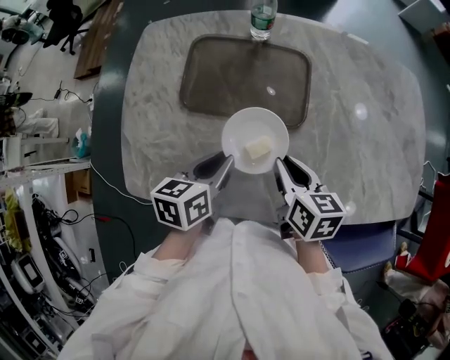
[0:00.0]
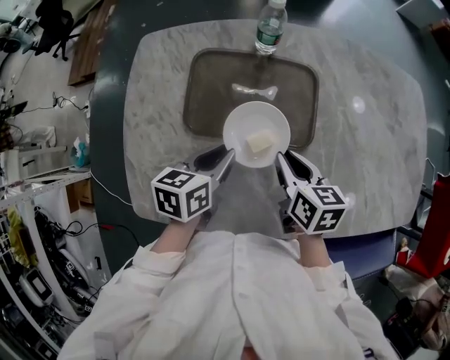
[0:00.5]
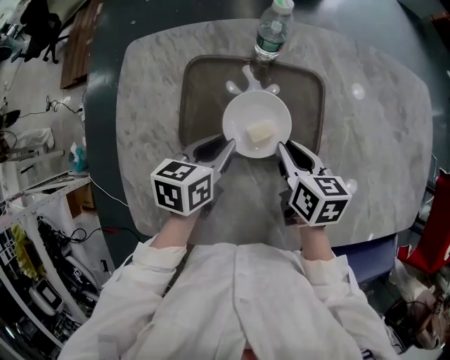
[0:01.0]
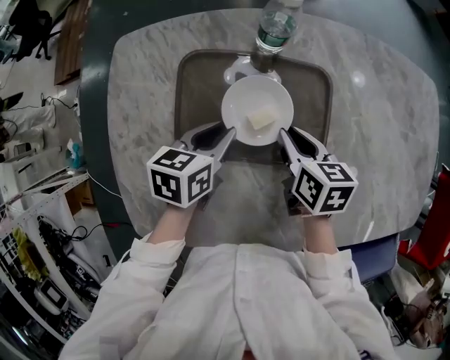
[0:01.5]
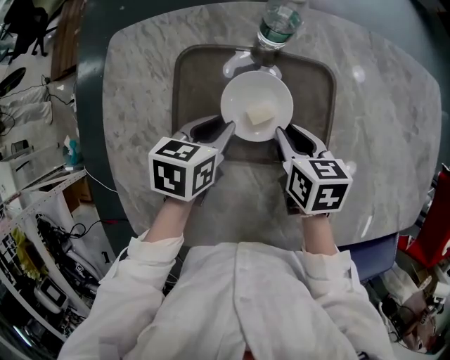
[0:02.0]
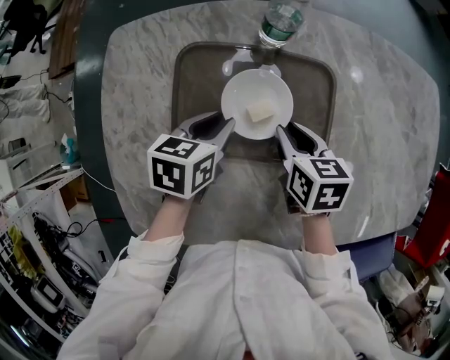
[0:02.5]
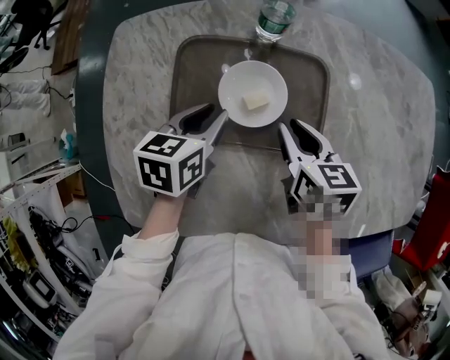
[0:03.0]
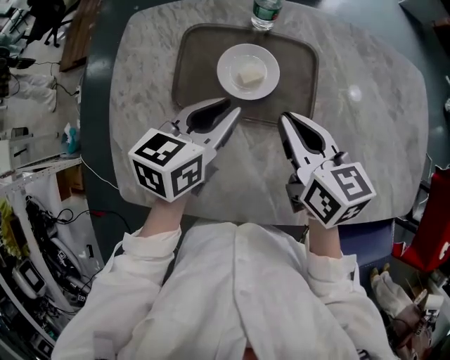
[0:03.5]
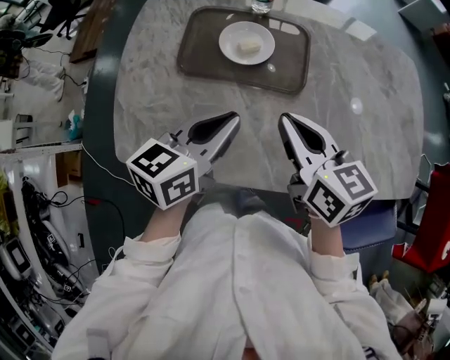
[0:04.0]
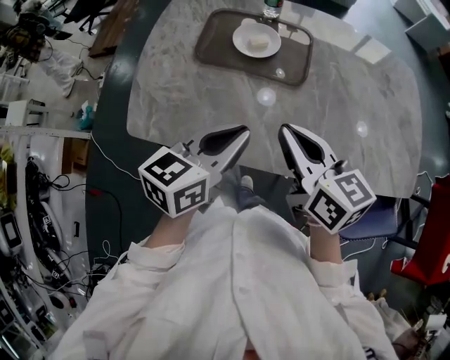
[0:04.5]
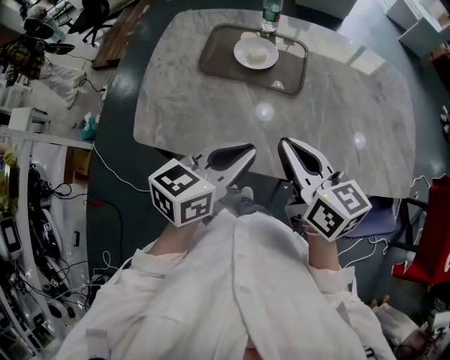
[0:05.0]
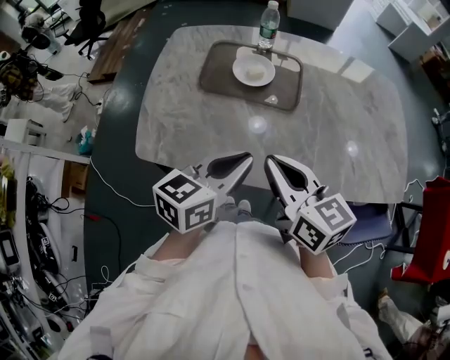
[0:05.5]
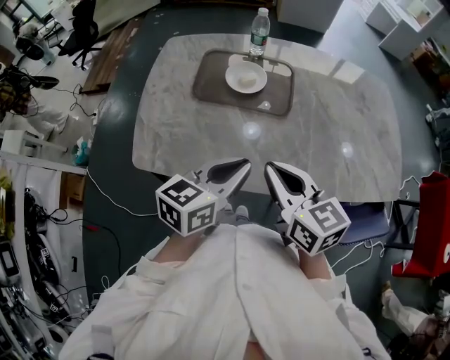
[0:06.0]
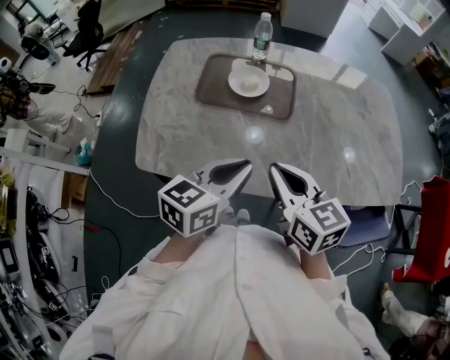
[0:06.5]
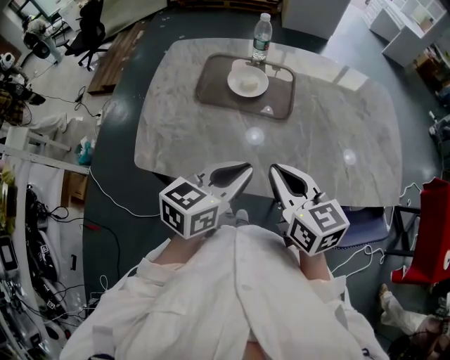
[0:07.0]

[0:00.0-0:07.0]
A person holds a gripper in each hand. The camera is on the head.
0:00.0 to 0:02.0: The grippers both shift forward and downward by some 20 cm.
0:02.0 to 0:03.5: Both grippers move upward and backward, approximately 15 cm. The left gripper swivels some 20 degrees; the right gripper turns by about 30 degrees.
0:03.5 to 0:05.0: The grippers both shift backward by roughly 25 cm.
0:05.0 to 0:07.0: The grippers stay close to where they were, moving slightly.

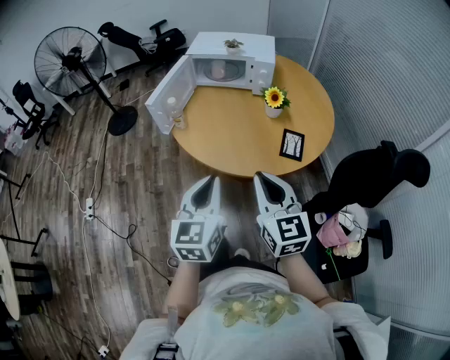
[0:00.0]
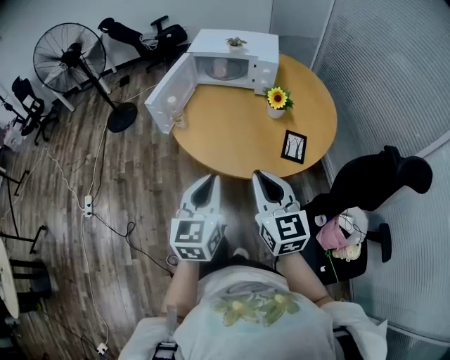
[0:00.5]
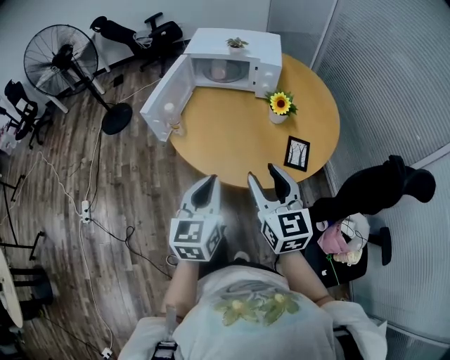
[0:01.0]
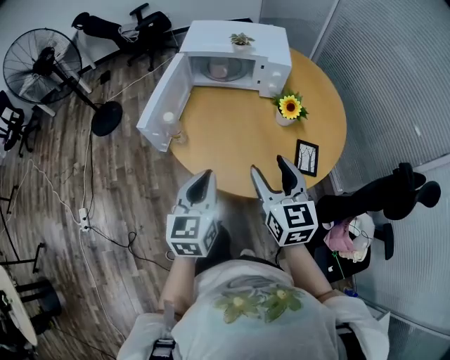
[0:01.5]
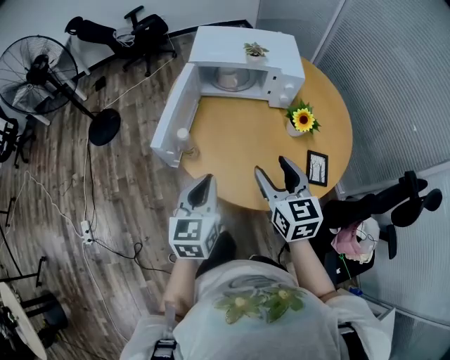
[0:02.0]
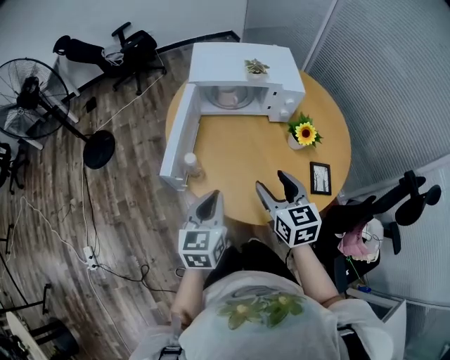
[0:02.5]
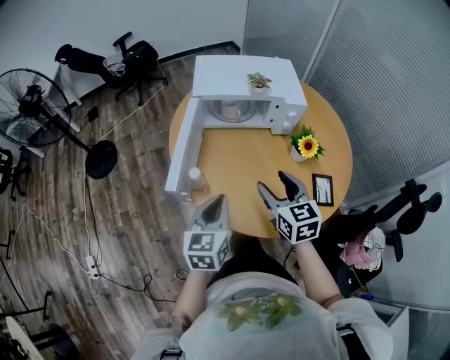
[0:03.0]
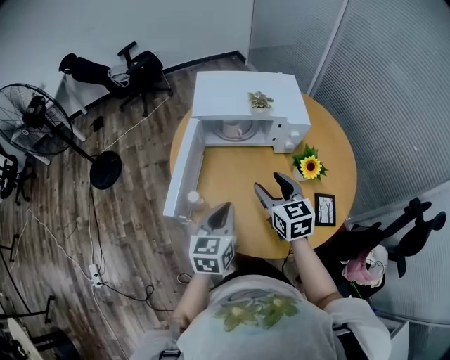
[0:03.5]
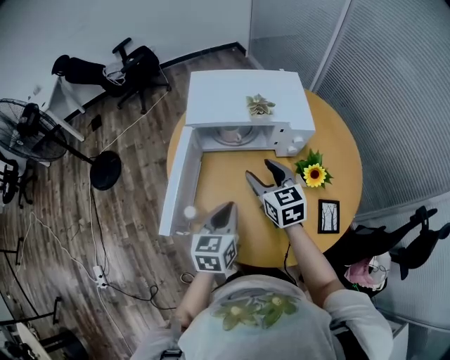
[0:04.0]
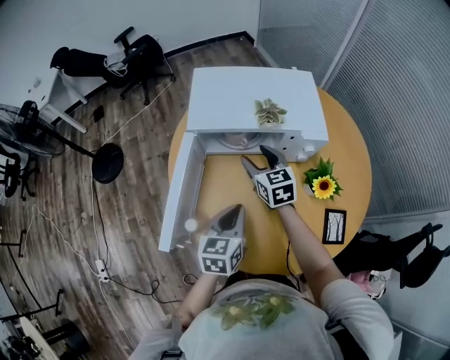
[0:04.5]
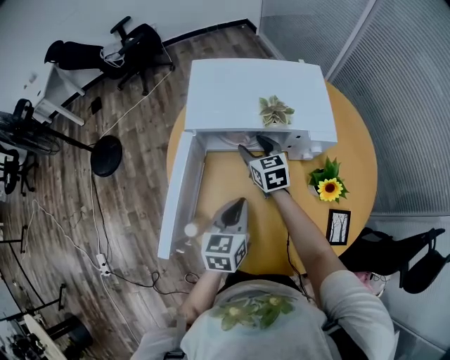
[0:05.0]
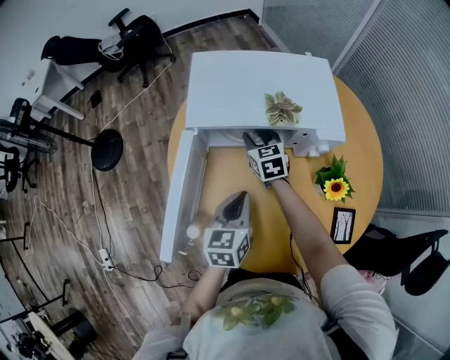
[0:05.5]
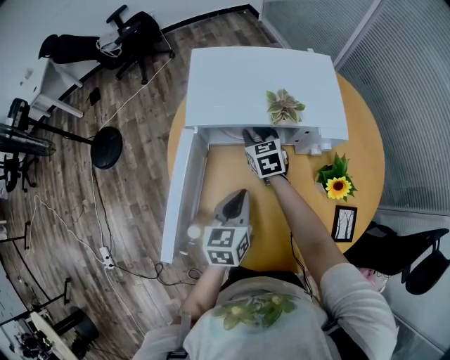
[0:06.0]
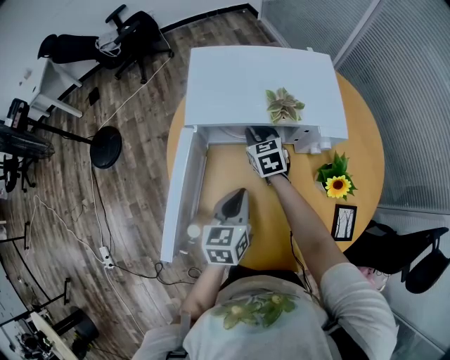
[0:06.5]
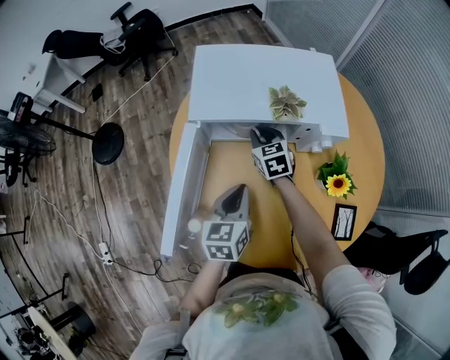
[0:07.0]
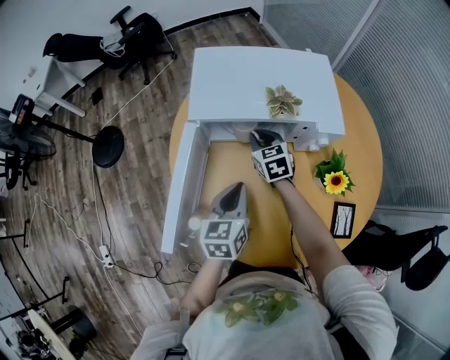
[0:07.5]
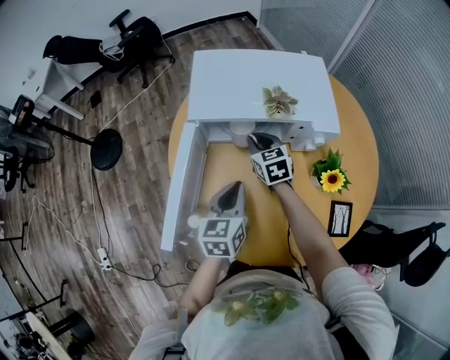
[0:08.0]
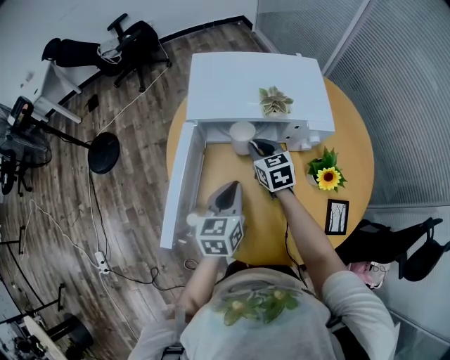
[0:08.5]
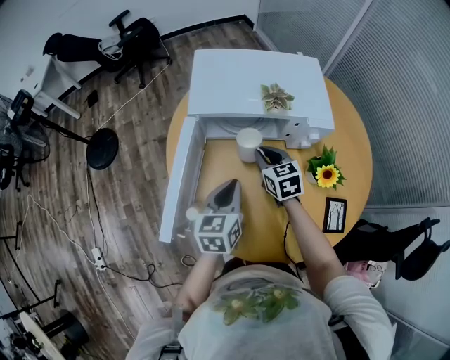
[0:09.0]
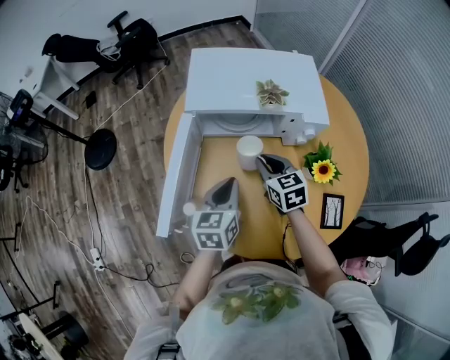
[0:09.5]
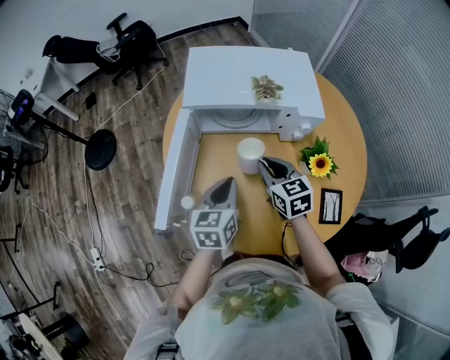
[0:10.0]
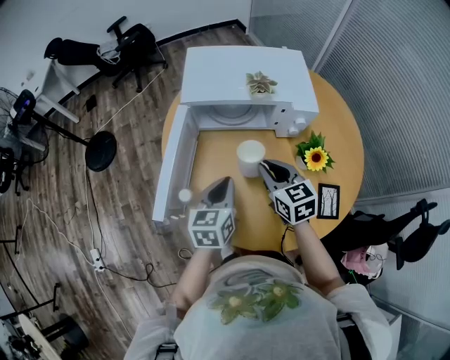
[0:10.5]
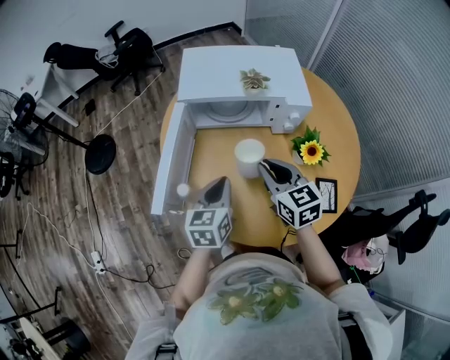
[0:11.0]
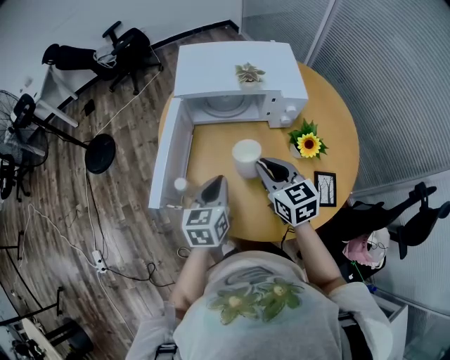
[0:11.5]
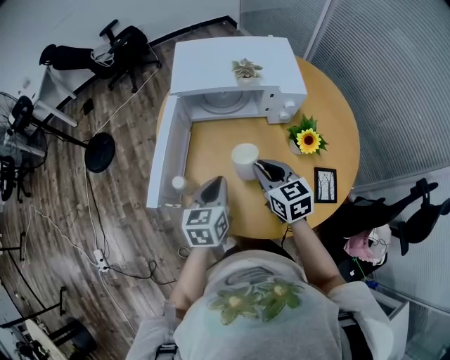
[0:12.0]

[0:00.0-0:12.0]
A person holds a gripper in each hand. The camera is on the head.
0:00.0 to 0:02.0: The left gripper goes about 30 cm forward and to the left; the right gripper travels forward by about 25 cm, and opens.
0:02.0 to 0:04.0: The two grippers go about 20 cm forward.
0:04.0 to 0:06.0: The left gripper goes roughly 10 cm forward and downward; the right gripper shifts about 25 cm forward and downward, and closes its fingers.
0:06.0 to 0:08.0: The right gripper moves some 5 cm.
0:08.0 to 0:10.0: The right gripper is displaced backward by about 15 cm.
0:10.0 to 0:12.0: Both grippers move backward, some 10 cm.

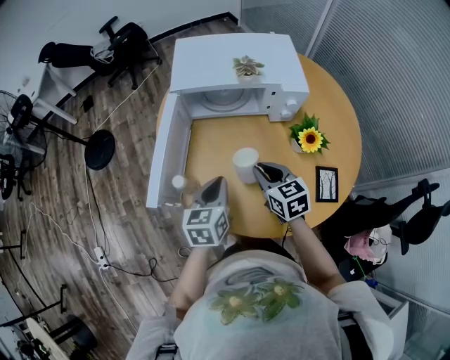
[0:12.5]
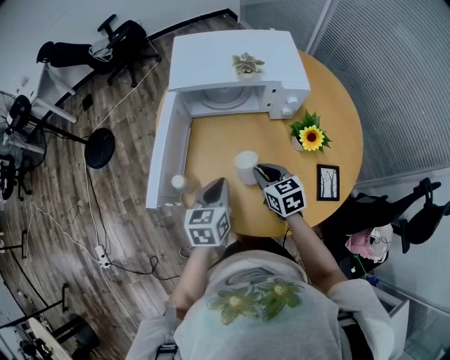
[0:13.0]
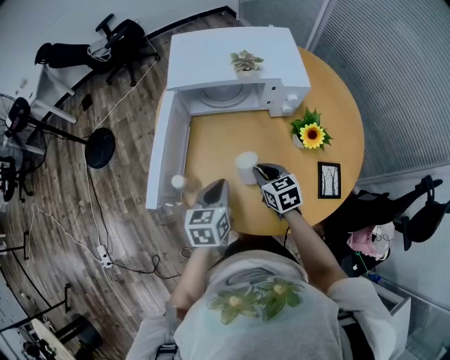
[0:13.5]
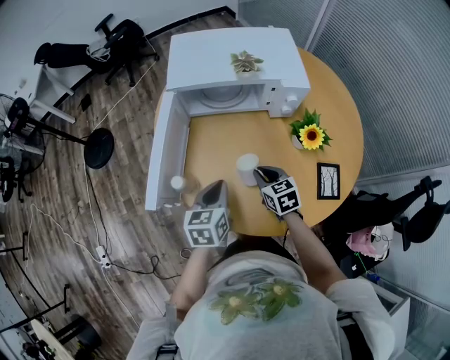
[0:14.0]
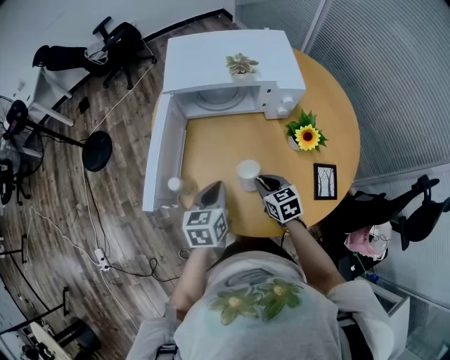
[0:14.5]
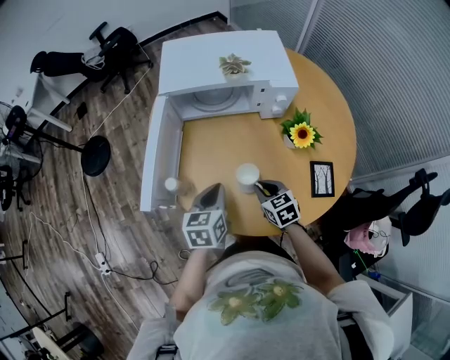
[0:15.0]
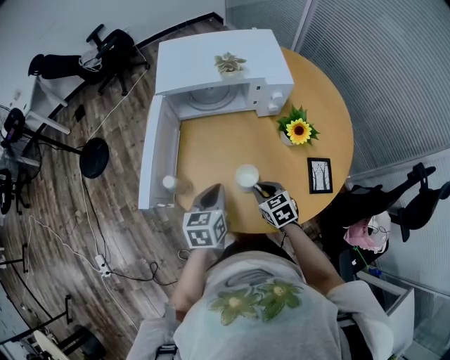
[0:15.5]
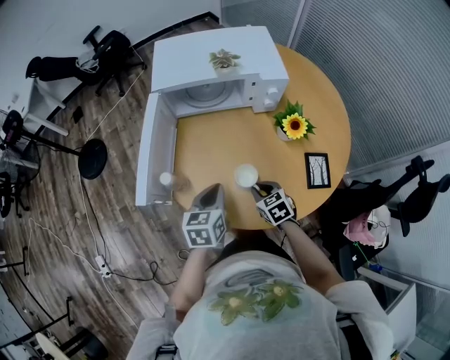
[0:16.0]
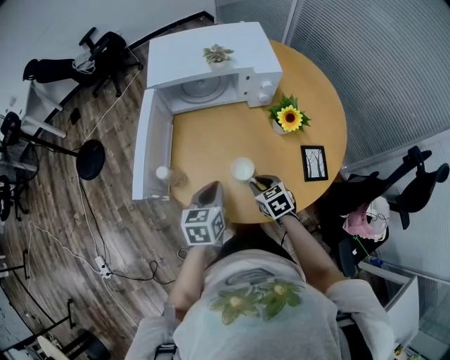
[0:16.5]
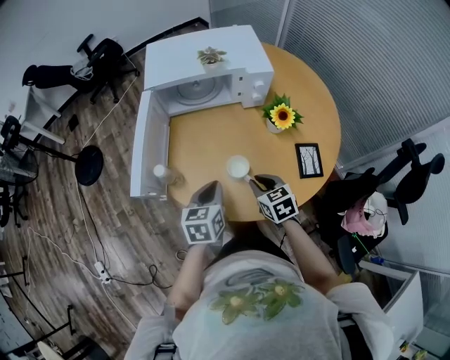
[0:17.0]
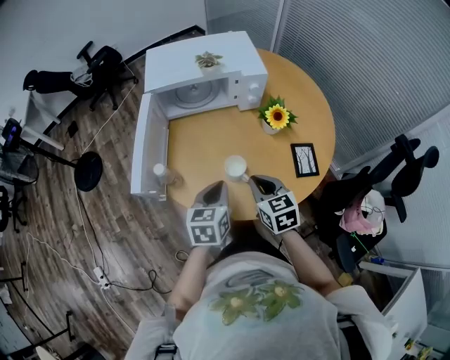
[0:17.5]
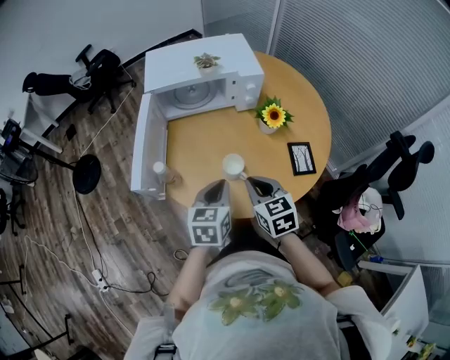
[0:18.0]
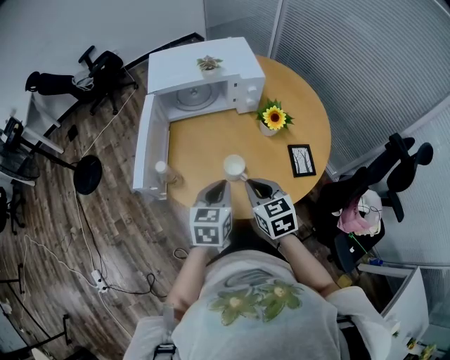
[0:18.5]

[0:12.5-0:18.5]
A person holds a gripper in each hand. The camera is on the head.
0:12.5 to 0:14.5: The right gripper goes about 10 cm downward.
0:14.5 to 0:16.5: The two grippers go about 5 cm backward.
0:16.5 to 0:18.5: The right gripper heads upward, covering approximately 15 cm, and swivels some 20 degrees; the left gripper goes approximately 10 cm upward and backward.

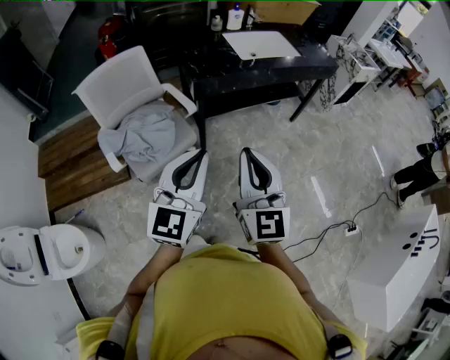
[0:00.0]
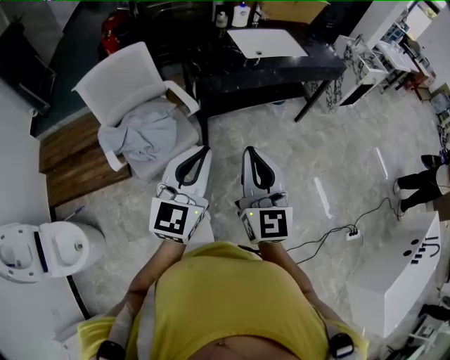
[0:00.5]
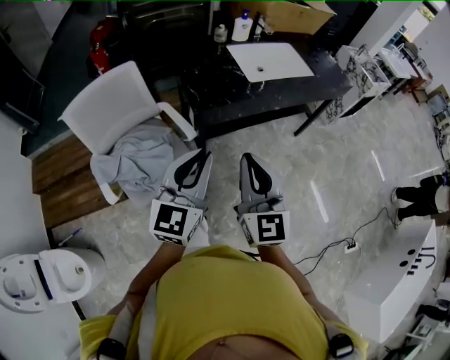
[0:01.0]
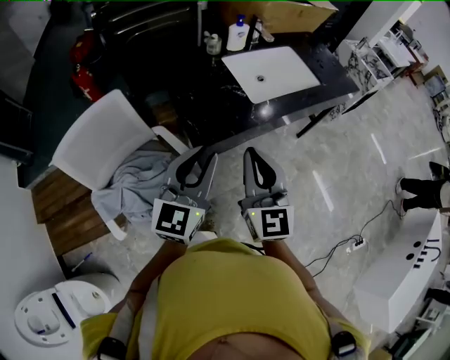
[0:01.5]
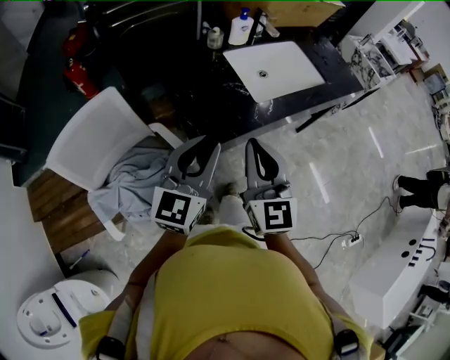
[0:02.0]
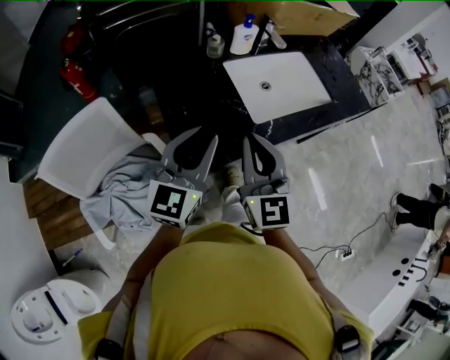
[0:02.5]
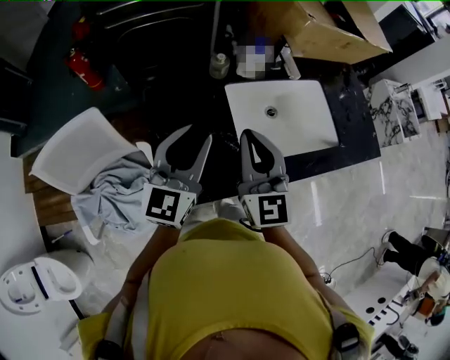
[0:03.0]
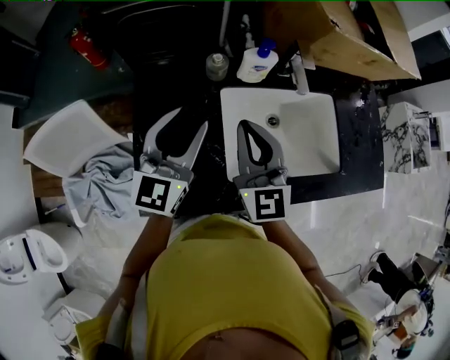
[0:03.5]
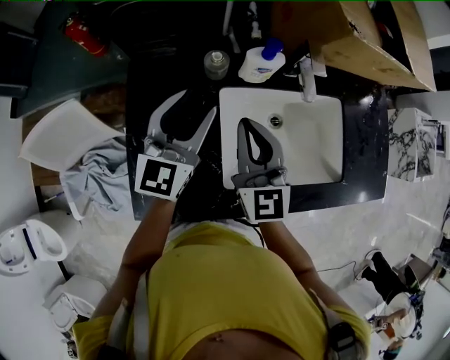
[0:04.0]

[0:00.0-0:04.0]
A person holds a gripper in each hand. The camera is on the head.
0:00.0 to 0:02.0: The pair of grippers is taken forward, about 40 cm.
0:02.0 to 0:04.0: The two grippers travel together, forward, roughly 40 cm. The right gripper turns by about 20 degrees. The left gripper swivels some 20 degrees.
